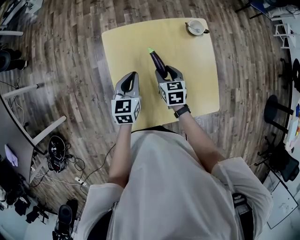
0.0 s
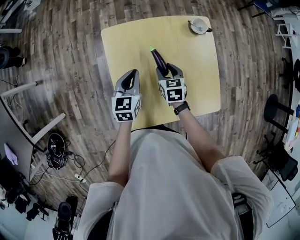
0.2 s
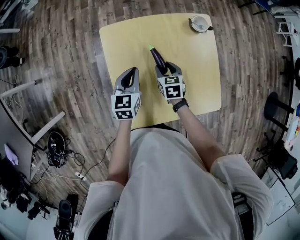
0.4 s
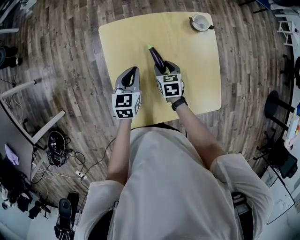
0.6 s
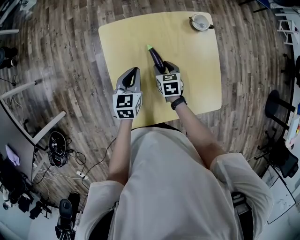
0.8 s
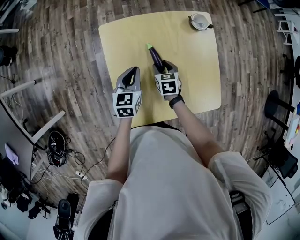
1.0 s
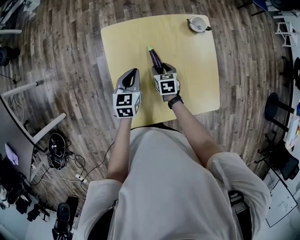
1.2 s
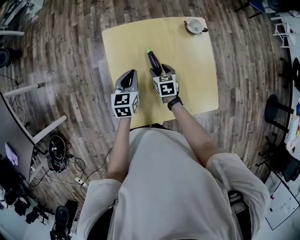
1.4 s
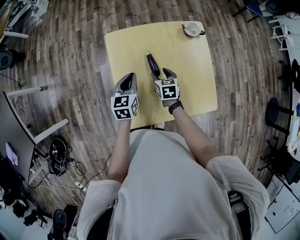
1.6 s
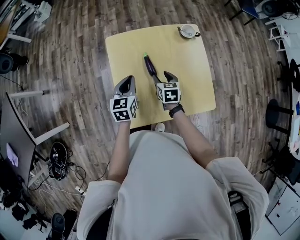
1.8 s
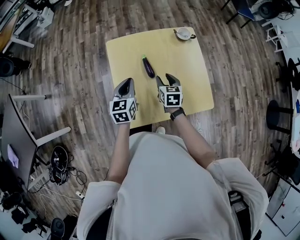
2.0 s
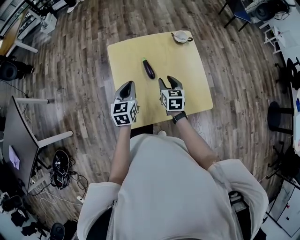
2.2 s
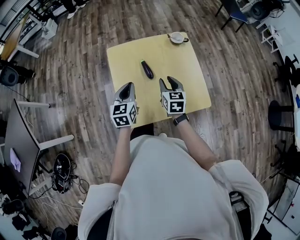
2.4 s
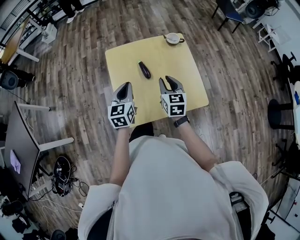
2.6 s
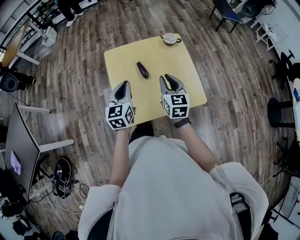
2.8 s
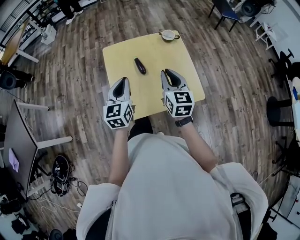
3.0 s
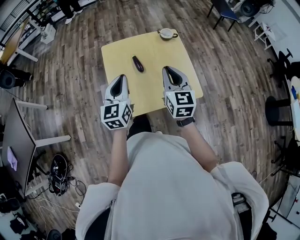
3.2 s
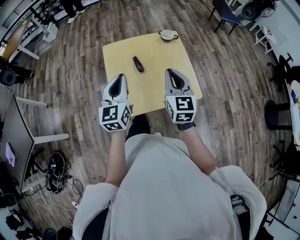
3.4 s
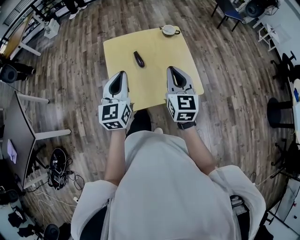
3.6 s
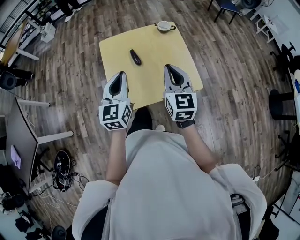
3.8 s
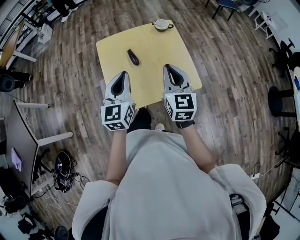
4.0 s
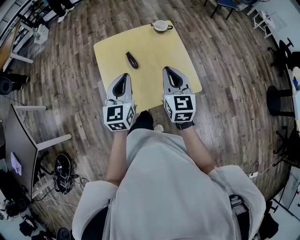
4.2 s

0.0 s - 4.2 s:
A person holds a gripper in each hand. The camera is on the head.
0.0 s - 1.4 s: The right gripper moves downward, approximately 5 cm.
1.4 s - 2.8 s: The grippers both shift upward and backward by roughly 25 cm. The right gripper tilts its fingers about 30 degrees upward, and closes up.
2.8 s - 4.2 s: The right gripper goes roughly 5 cm upward; the left gripper moves to the right, approximately 5 cm.

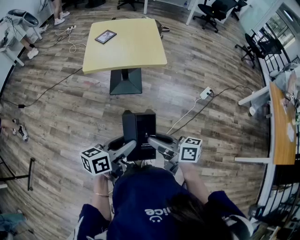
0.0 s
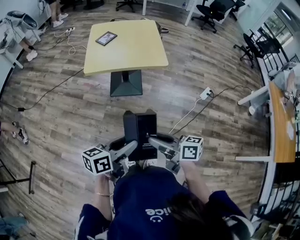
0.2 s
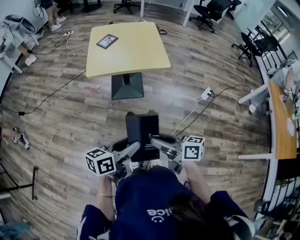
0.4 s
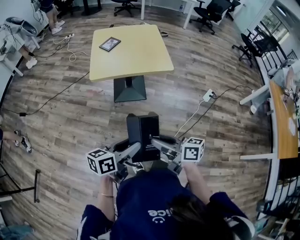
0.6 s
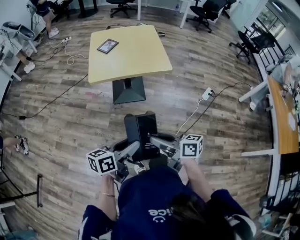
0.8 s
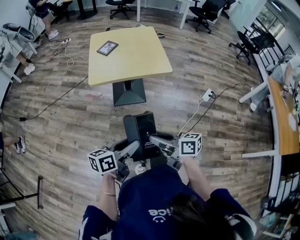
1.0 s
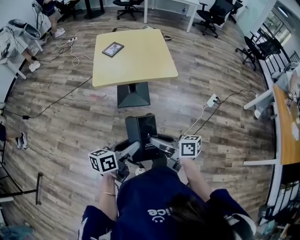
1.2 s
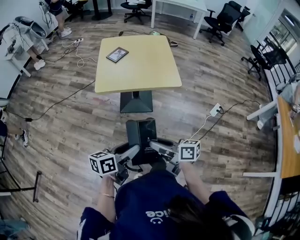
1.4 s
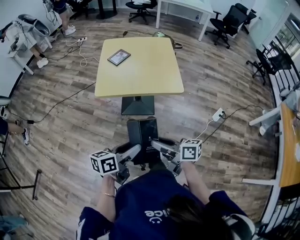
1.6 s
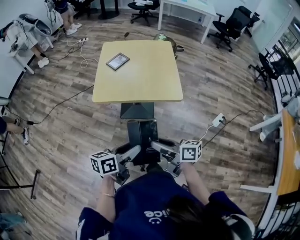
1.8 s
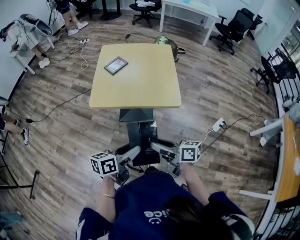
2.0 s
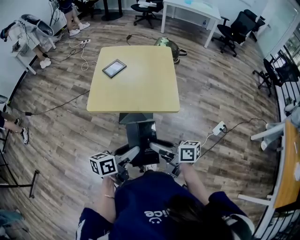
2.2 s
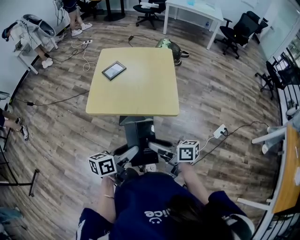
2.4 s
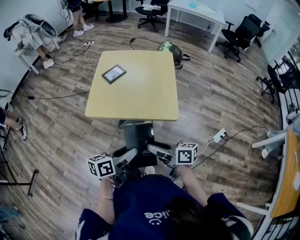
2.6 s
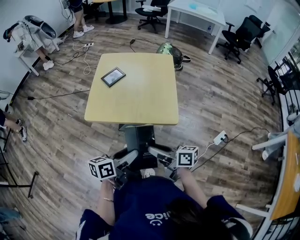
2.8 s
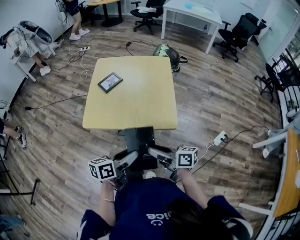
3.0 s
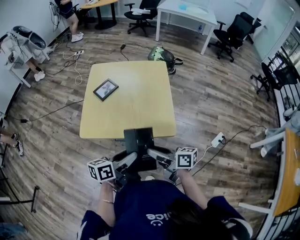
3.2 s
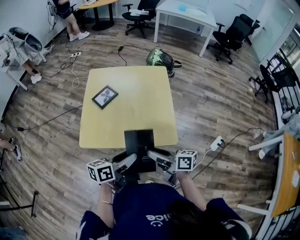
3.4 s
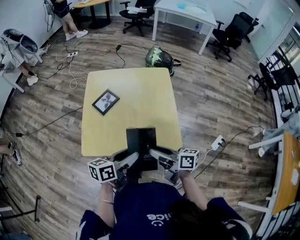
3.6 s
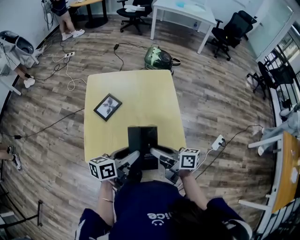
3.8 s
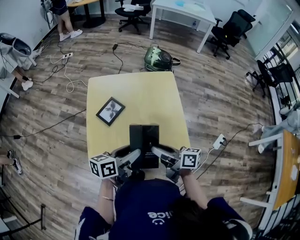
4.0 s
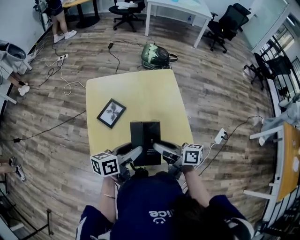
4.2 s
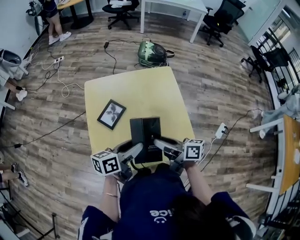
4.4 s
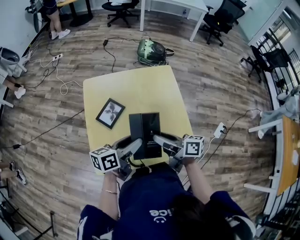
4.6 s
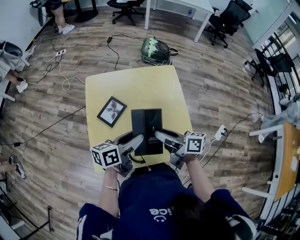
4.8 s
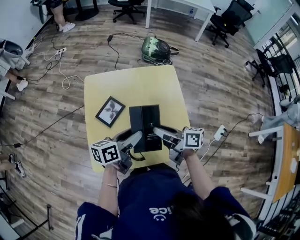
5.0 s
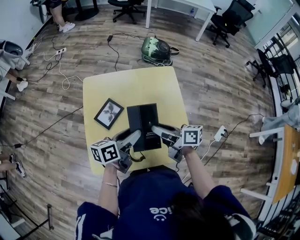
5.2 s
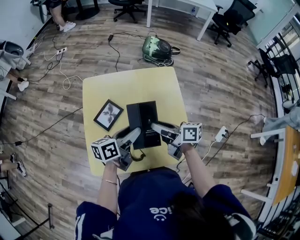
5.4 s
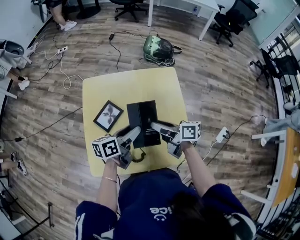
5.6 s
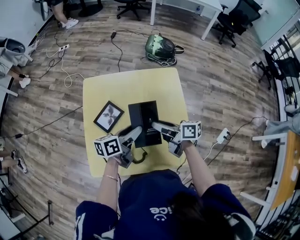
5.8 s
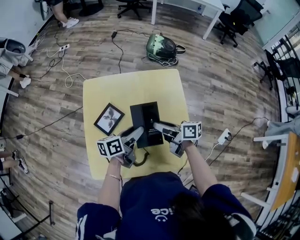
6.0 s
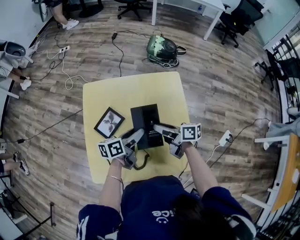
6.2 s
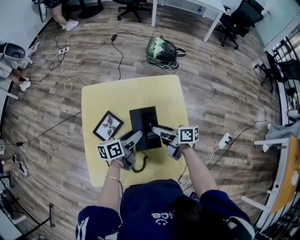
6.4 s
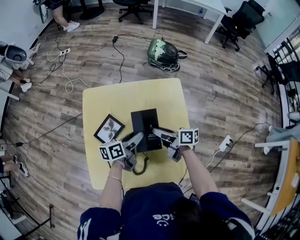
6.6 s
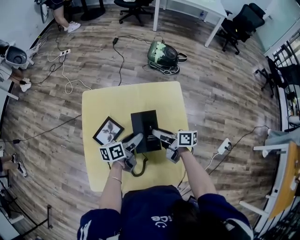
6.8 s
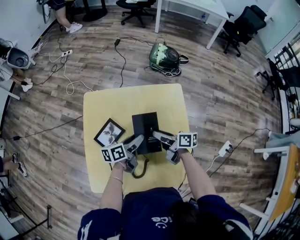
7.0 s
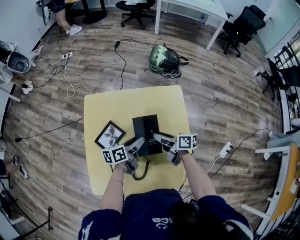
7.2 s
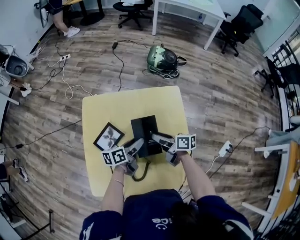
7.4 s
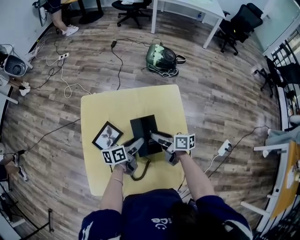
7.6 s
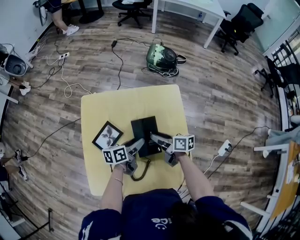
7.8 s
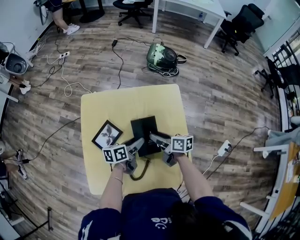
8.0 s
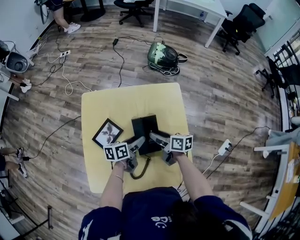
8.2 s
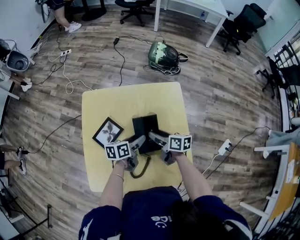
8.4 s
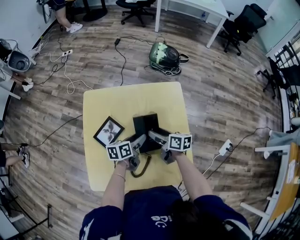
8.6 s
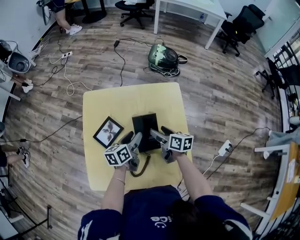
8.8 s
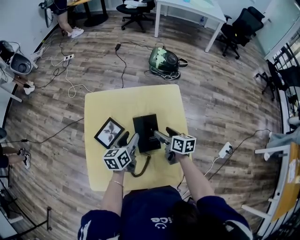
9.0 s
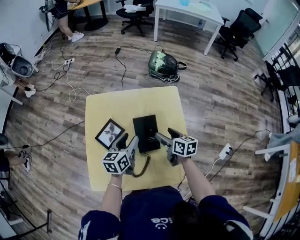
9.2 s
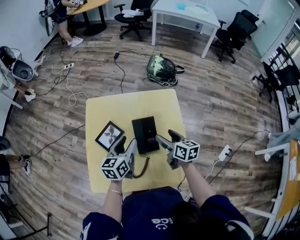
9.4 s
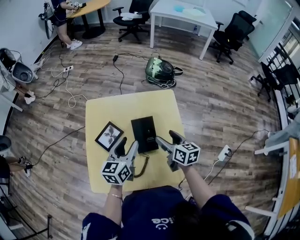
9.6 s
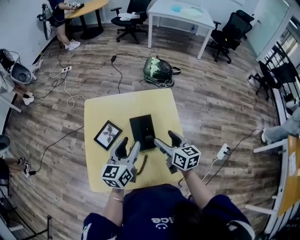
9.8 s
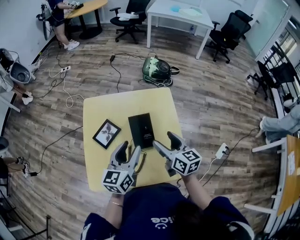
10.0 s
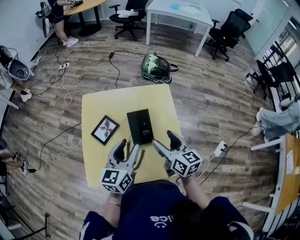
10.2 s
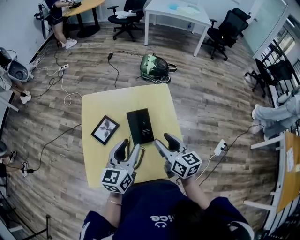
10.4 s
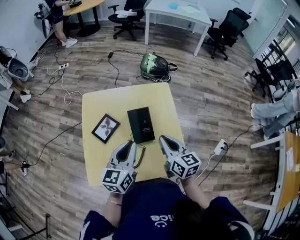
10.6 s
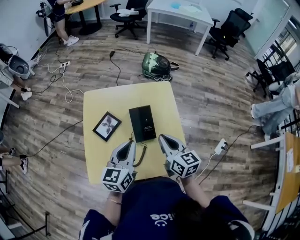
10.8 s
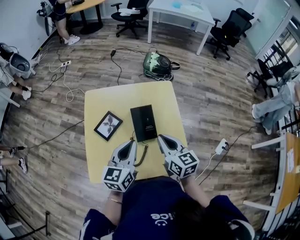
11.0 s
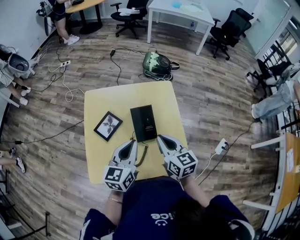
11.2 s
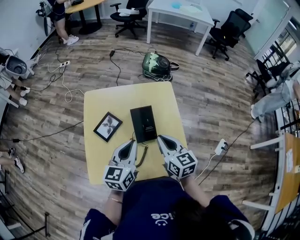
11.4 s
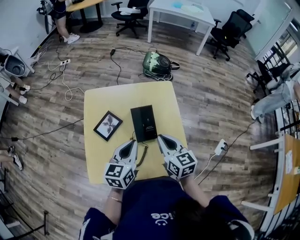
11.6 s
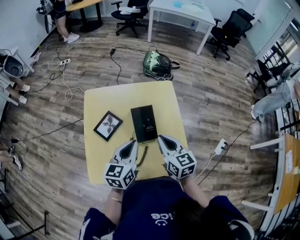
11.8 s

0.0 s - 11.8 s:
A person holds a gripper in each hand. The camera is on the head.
0.0 s - 1.4 s: Both grippers travel together forward and to the left, roughly 15 cm.
1.4 s - 3.0 s: The grippers both shift forward and to the right by about 25 cm.
3.0 s - 4.4 s: Both grippers travel together forward, about 30 cm.
4.4 s - 6.0 s: Both grippers travel together forward and downward, some 15 cm.
6.0 s - 7.4 s: Both grippers travel together downward and forward, some 10 cm.
7.4 s - 8.8 s: The right gripper opens.
8.8 s - 10.4 s: Both grippers travel together upward and backward, some 20 cm. The left gripper swivels roughly 30 degrees. Meanwhile the right gripper turns by some 30 degrees.
10.4 s - 11.8 s: The left gripper closes up. Meanwhile the right gripper closes.

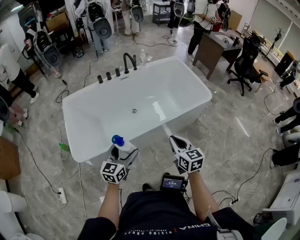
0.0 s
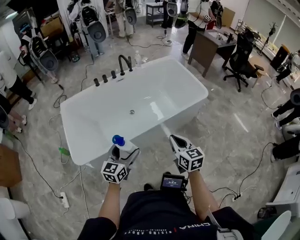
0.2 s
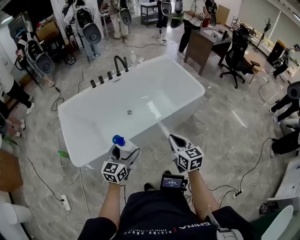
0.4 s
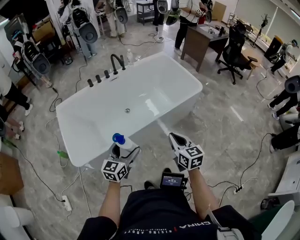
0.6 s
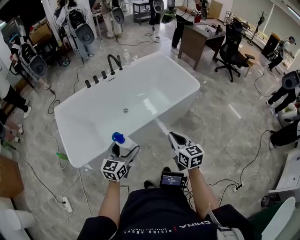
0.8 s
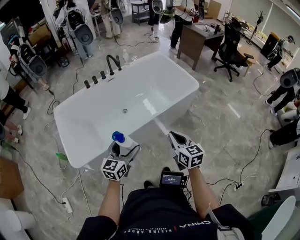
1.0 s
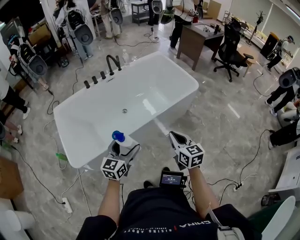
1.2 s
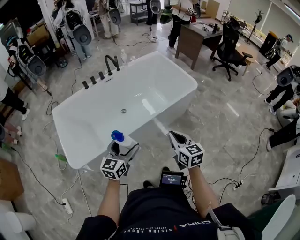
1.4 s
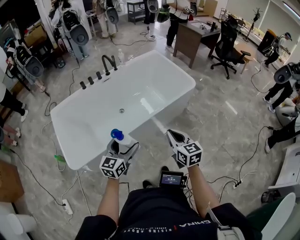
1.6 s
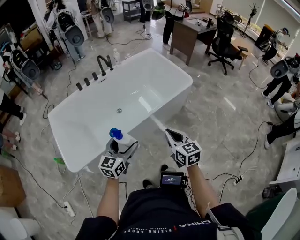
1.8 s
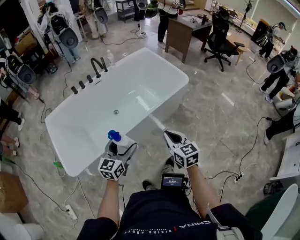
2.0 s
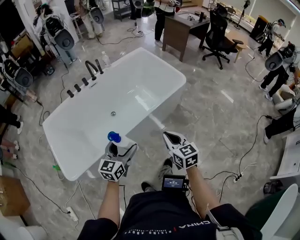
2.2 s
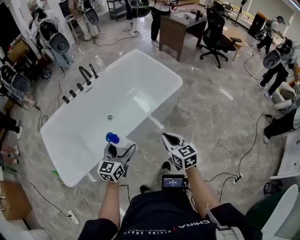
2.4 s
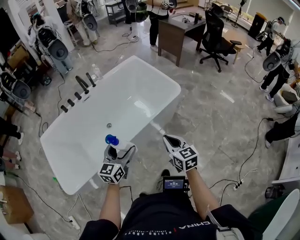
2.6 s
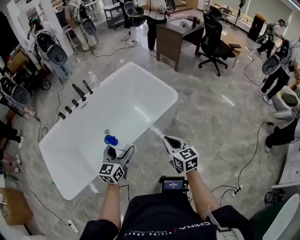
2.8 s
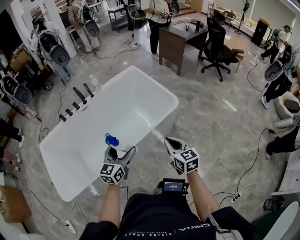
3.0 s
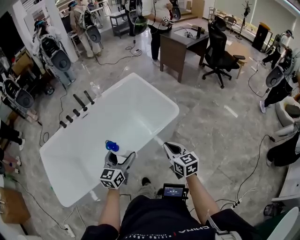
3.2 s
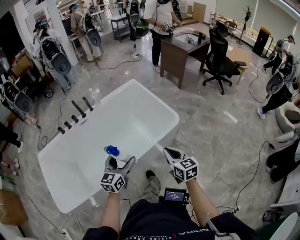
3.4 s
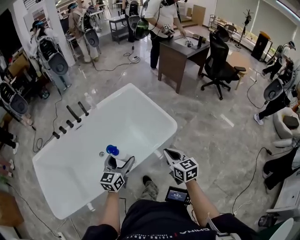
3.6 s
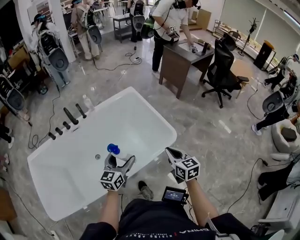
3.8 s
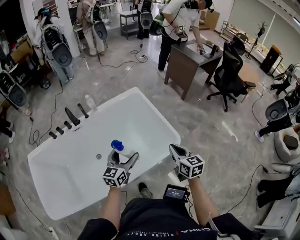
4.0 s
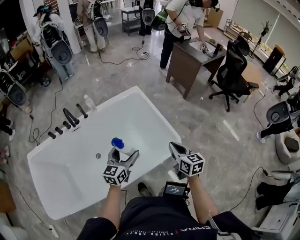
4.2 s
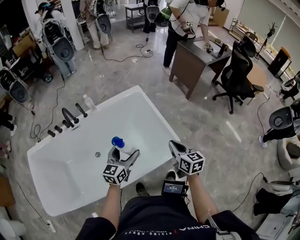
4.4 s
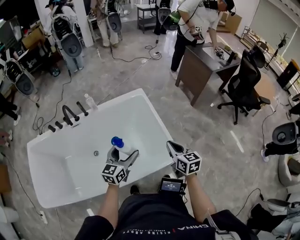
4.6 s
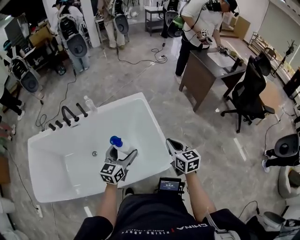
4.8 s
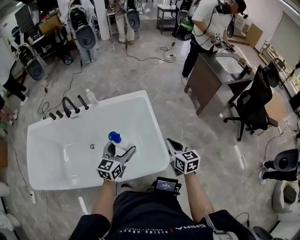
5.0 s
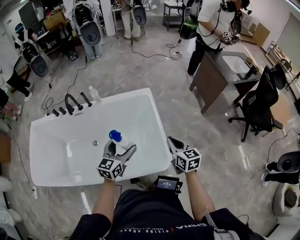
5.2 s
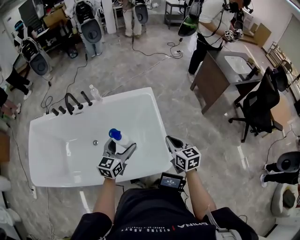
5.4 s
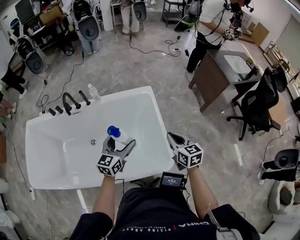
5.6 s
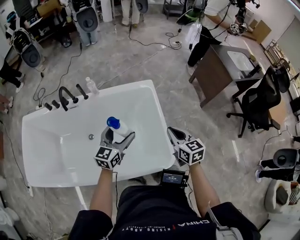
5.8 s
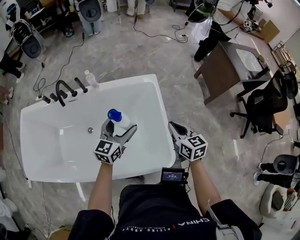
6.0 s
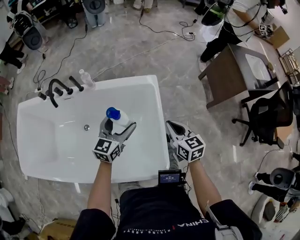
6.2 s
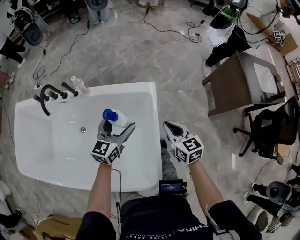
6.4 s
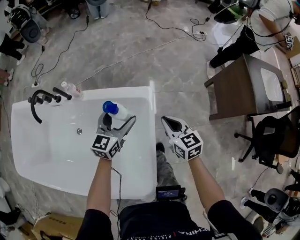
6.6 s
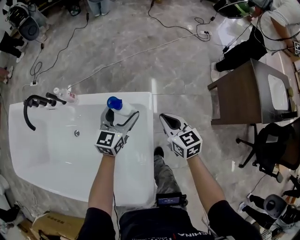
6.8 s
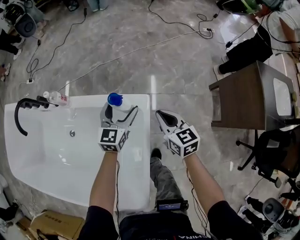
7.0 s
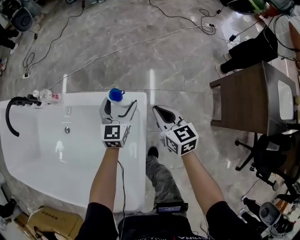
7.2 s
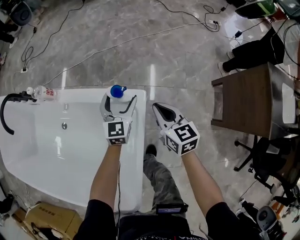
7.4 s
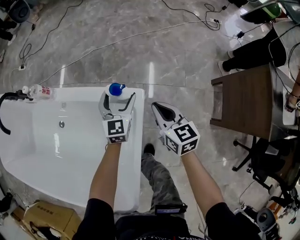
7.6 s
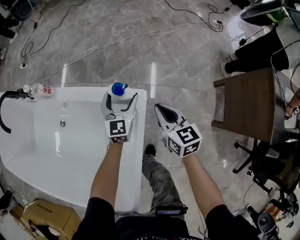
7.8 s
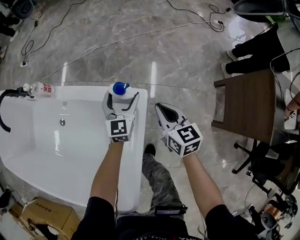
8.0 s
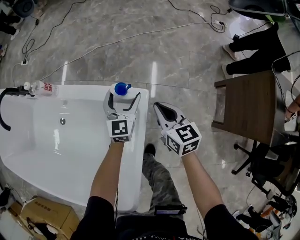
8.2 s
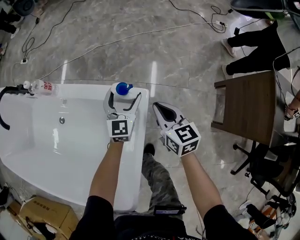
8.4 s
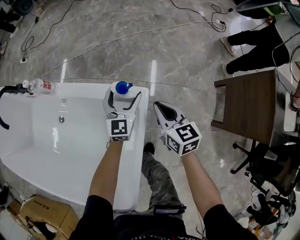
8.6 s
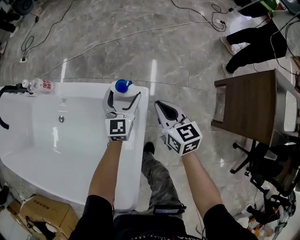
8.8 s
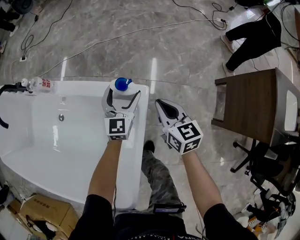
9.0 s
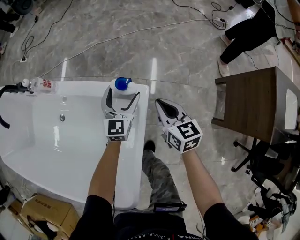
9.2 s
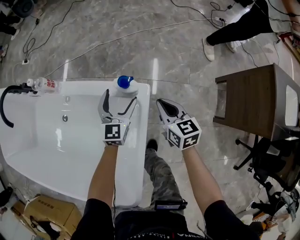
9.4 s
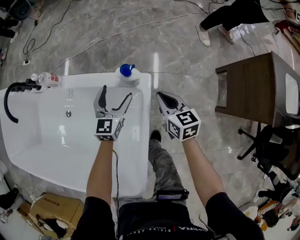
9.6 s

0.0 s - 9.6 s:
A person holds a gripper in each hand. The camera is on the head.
0.0 s - 1.6 s: The grippers both shift to the right by about 5 cm.
1.6 s - 3.2 s: The two grippers go roughly 30 cm forward and to the right.
3.2 s - 4.8 s: Both grippers are carried forward, some 40 cm.
4.8 s - 6.4 s: The grippers both shift forward by about 35 cm. The right gripper changes its angle by approximately 20 degrees.
6.4 s - 8.0 s: Both grippers move forward, downward and to the right, about 35 cm. The left gripper changes its angle by some 30 degrees.
8.0 s - 9.6 s: The left gripper goes about 10 cm backward and to the left.
